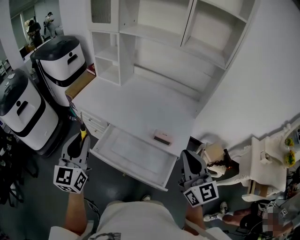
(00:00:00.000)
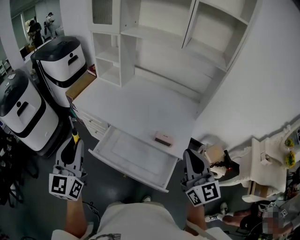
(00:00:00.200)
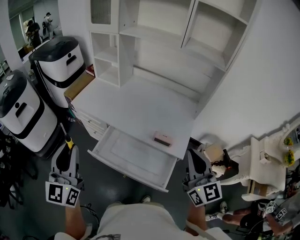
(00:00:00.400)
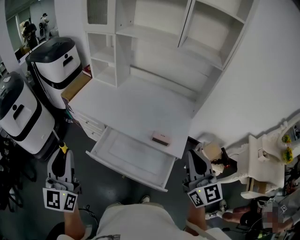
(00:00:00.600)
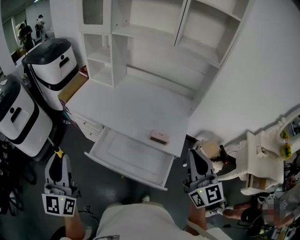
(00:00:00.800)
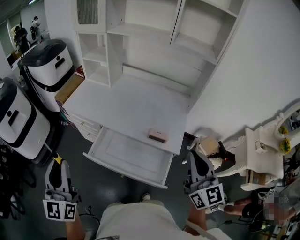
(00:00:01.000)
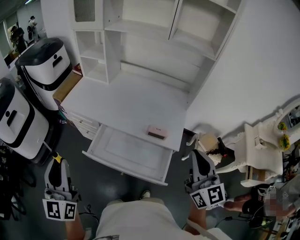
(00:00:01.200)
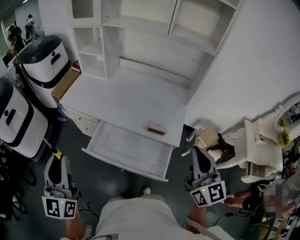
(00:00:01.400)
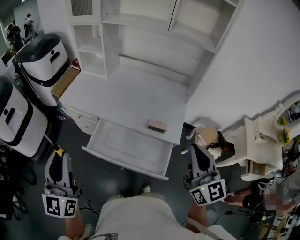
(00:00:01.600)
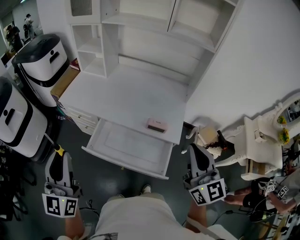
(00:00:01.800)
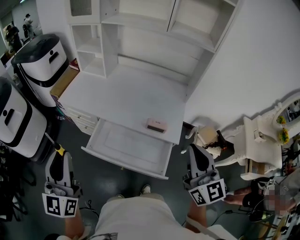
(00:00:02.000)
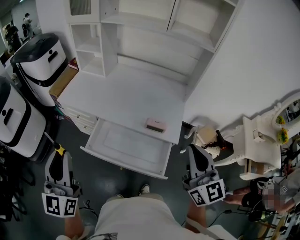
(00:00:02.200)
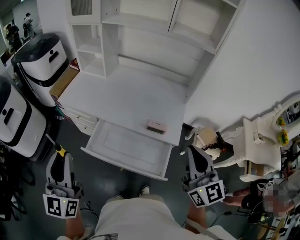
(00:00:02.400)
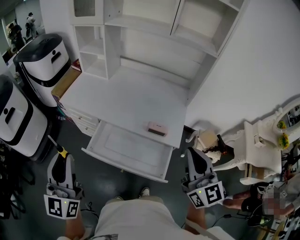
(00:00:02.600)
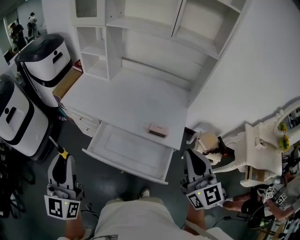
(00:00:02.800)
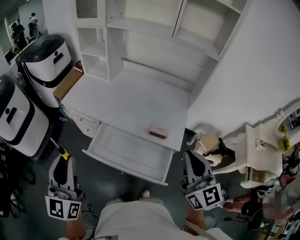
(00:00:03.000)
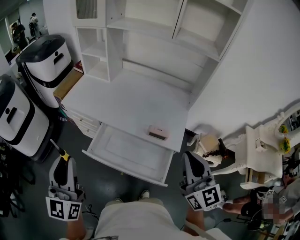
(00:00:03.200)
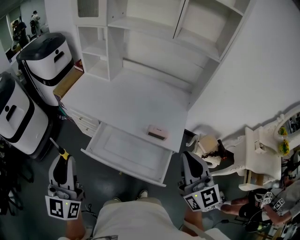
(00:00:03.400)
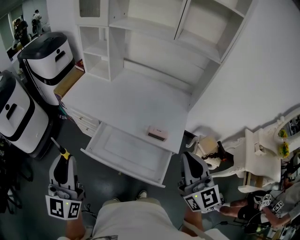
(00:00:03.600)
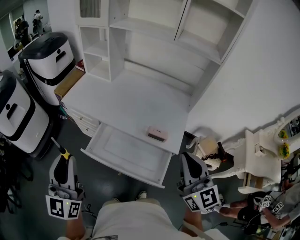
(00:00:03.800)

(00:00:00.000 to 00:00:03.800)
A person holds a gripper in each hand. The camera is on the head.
00:00:00.000 - 00:00:01.200: The left gripper heads backward and to the left, covering about 10 cm.
00:00:01.200 - 00:00:03.800: The grippers make only small movements.

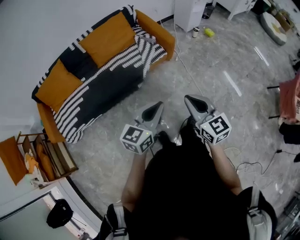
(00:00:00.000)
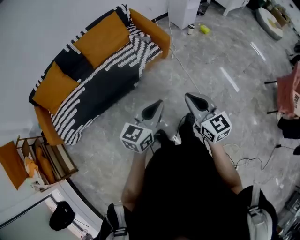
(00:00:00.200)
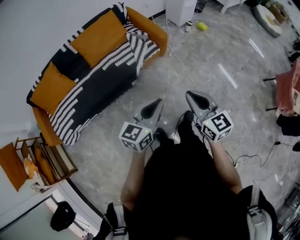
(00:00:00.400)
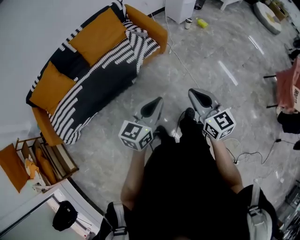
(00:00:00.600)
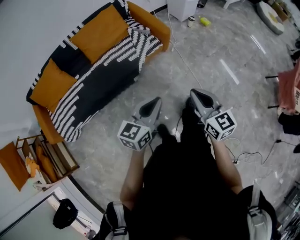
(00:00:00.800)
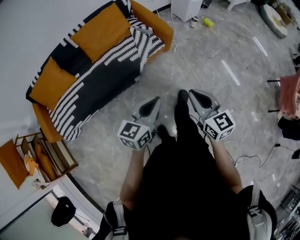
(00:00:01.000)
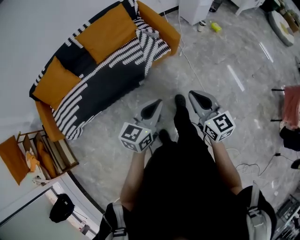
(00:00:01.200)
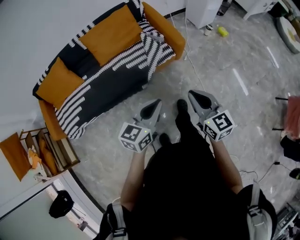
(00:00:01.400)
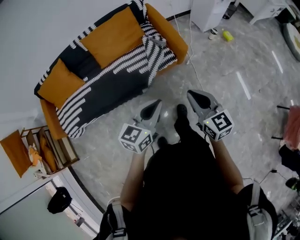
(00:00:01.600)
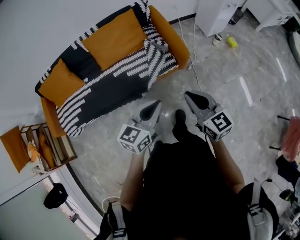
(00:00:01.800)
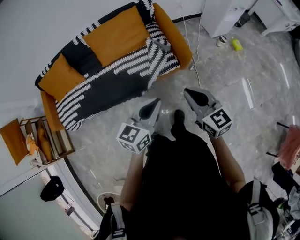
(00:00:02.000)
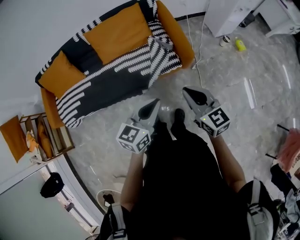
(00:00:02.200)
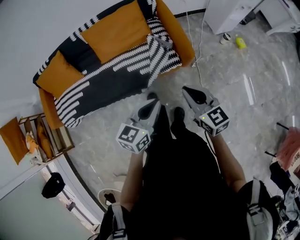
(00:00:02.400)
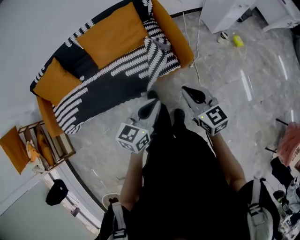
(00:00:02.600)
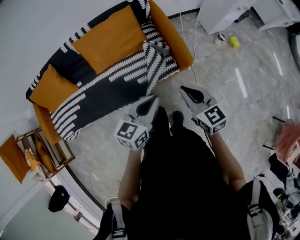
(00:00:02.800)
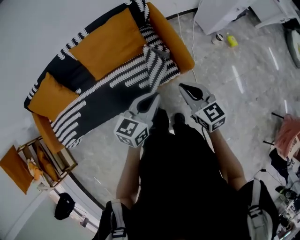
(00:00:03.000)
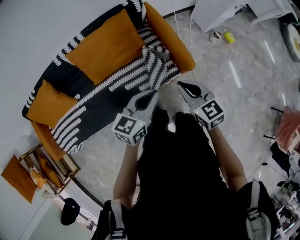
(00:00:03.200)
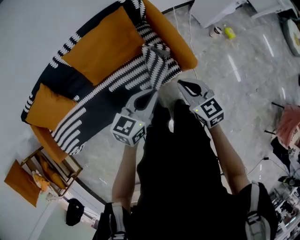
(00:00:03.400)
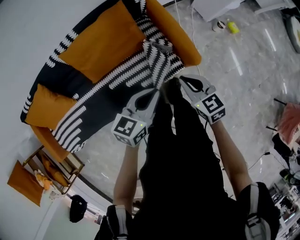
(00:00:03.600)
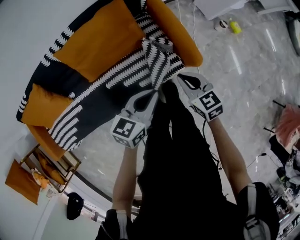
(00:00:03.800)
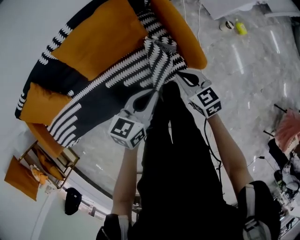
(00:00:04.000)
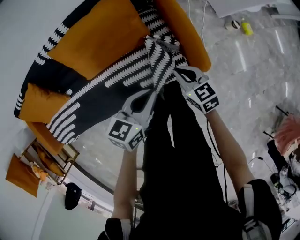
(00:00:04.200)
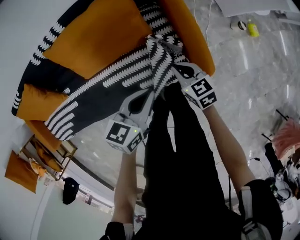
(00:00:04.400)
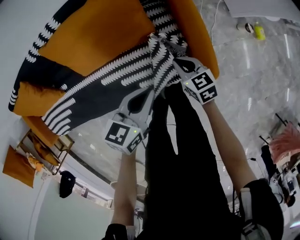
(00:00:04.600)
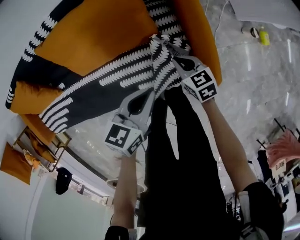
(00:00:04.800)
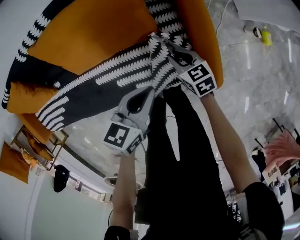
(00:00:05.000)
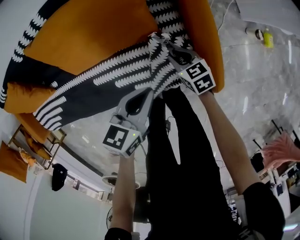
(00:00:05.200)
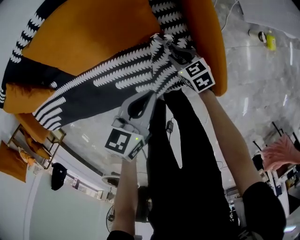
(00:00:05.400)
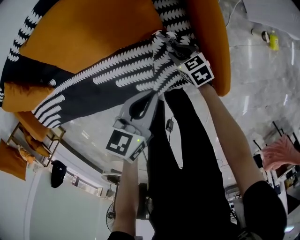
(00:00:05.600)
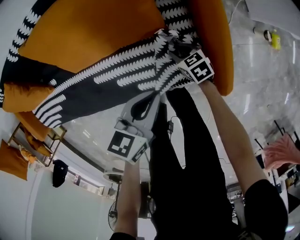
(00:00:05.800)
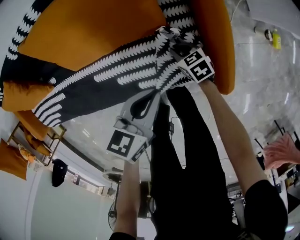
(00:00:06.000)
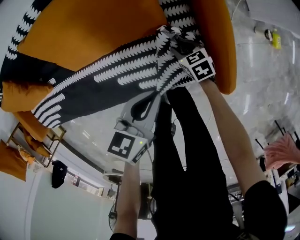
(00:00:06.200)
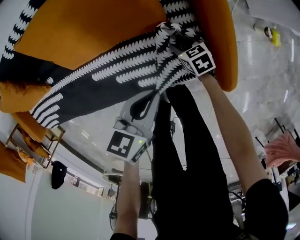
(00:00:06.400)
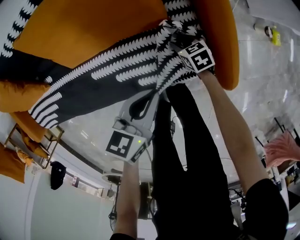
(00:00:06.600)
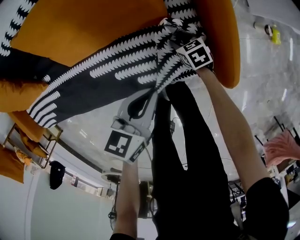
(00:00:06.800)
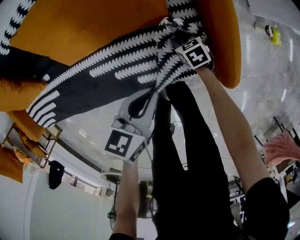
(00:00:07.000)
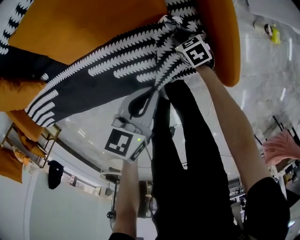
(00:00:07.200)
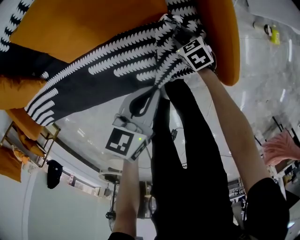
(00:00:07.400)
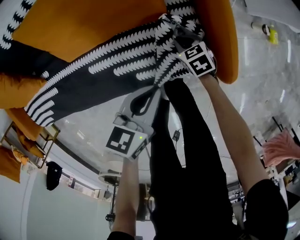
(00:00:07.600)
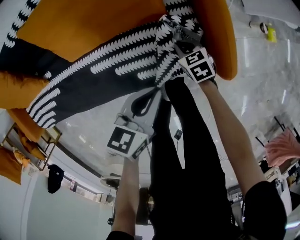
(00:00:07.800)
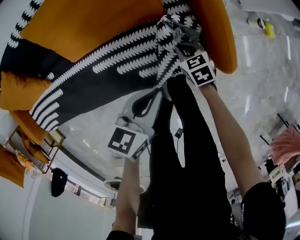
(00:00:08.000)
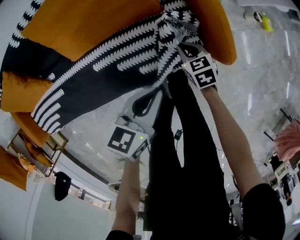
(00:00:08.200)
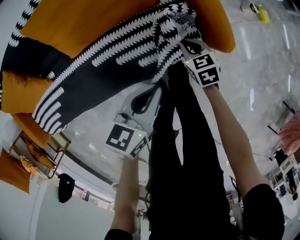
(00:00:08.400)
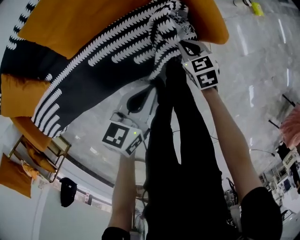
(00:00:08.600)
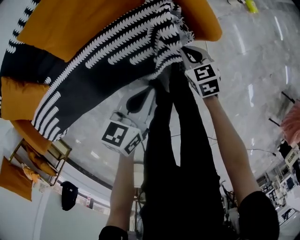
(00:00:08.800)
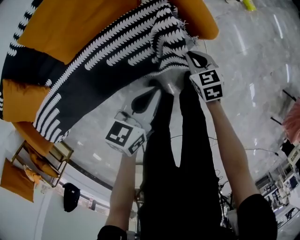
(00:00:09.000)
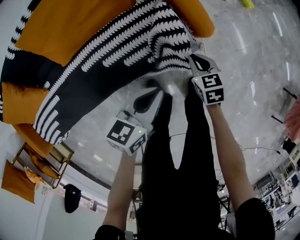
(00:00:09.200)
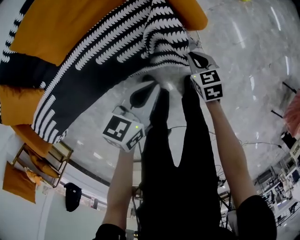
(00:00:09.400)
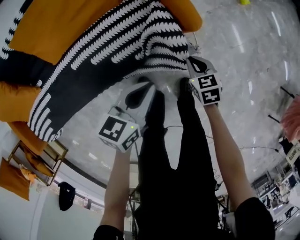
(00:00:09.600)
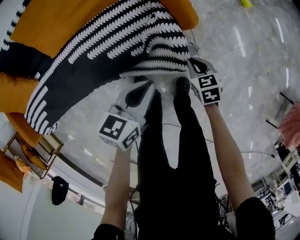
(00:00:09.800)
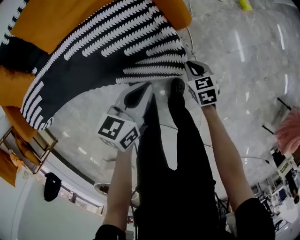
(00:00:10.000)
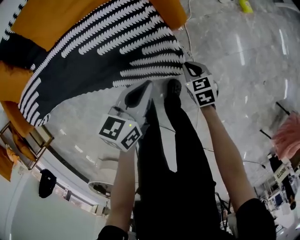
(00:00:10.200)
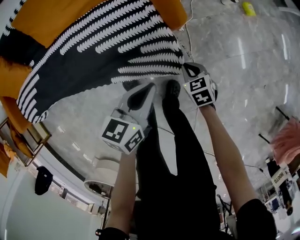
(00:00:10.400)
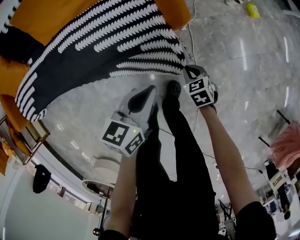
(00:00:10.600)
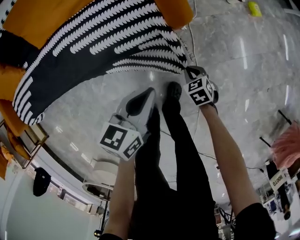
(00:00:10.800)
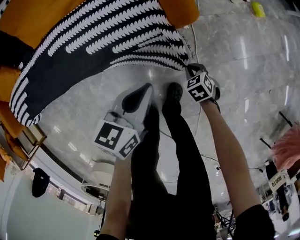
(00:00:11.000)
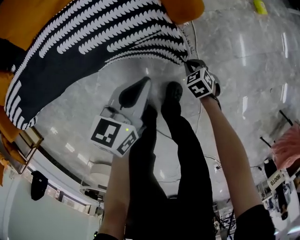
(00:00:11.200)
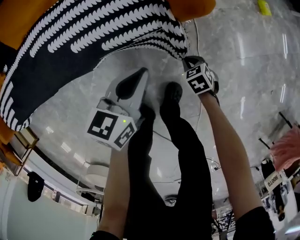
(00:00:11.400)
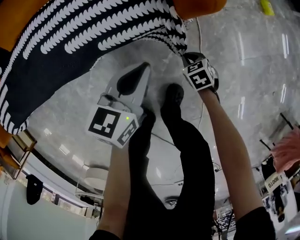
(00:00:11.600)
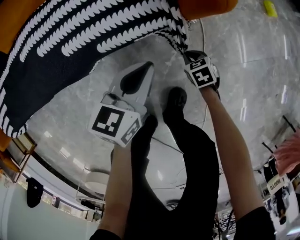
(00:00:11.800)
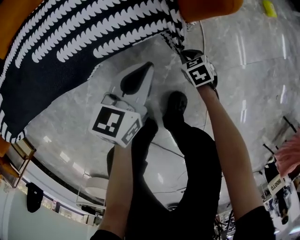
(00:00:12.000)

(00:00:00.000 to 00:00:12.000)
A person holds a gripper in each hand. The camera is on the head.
00:00:00.000 - 00:00:01.600: The two grippers go about 25 cm forward.
00:00:01.600 - 00:00:03.000: Both grippers travel together forward, some 30 cm.
00:00:03.000 - 00:00:04.400: The left gripper moves forward and downward, some 25 cm. The right gripper moves downward and forward, about 35 cm, and turns by some 20 degrees.
00:00:04.400 - 00:00:06.000: The left gripper moves downward and forward, about 15 cm. Meanwhile the right gripper shifts some 25 cm downward, and swivels about 20 degrees.
00:00:06.000 - 00:00:07.600: The left gripper travels backward by about 5 cm. The right gripper opens, then closes again.
00:00:07.600 - 00:00:09.000: The left gripper moves roughly 20 cm, while the right gripper ends up roughly 25 cm from where it was, and swivels some 30 degrees.
00:00:09.000 - 00:00:10.400: The left gripper shifts about 10 cm to the right. The right gripper moves left and right over approximately 10 cm, changing direction 2 times.
00:00:10.400 - 00:00:12.000: The two grippers go about 30 cm downward.

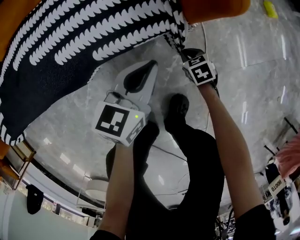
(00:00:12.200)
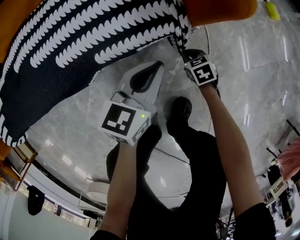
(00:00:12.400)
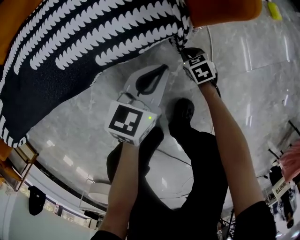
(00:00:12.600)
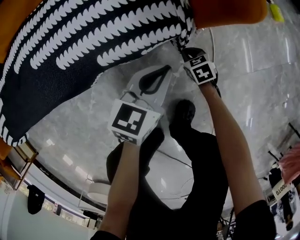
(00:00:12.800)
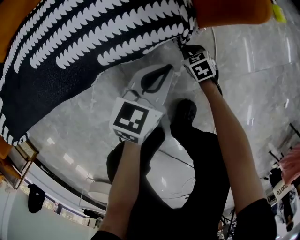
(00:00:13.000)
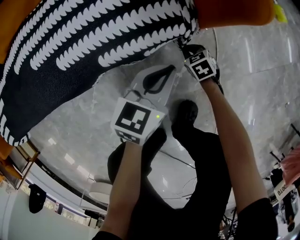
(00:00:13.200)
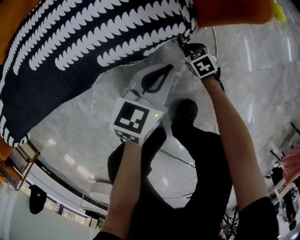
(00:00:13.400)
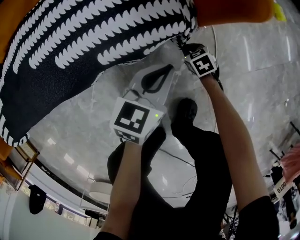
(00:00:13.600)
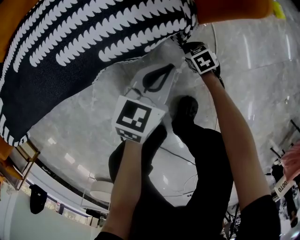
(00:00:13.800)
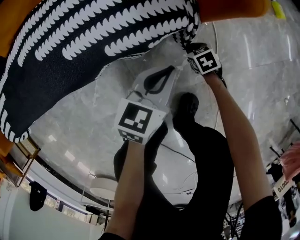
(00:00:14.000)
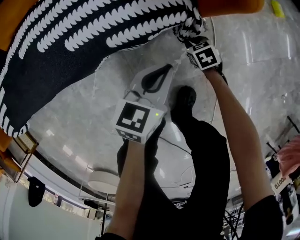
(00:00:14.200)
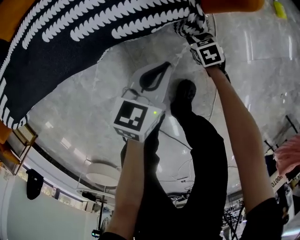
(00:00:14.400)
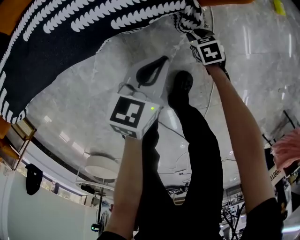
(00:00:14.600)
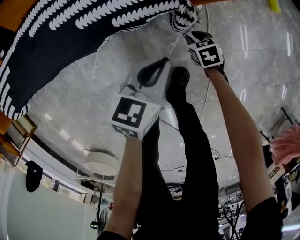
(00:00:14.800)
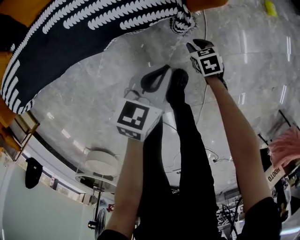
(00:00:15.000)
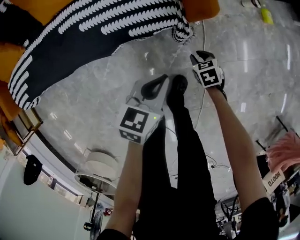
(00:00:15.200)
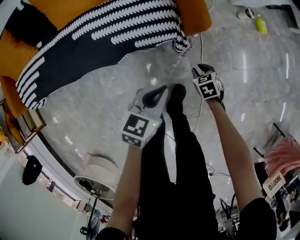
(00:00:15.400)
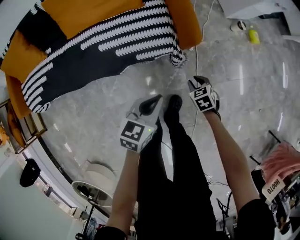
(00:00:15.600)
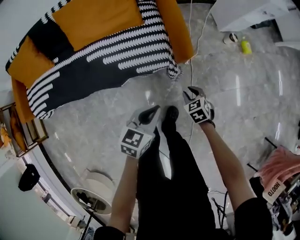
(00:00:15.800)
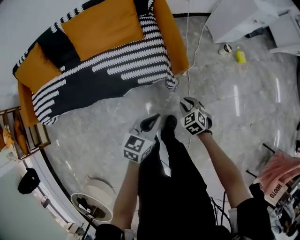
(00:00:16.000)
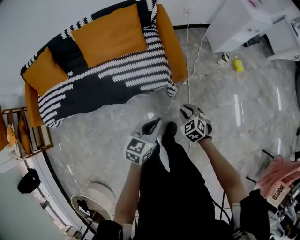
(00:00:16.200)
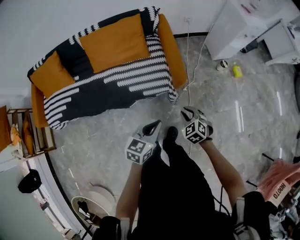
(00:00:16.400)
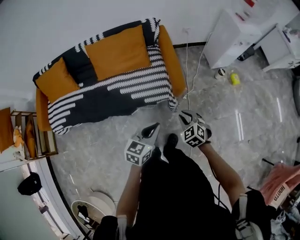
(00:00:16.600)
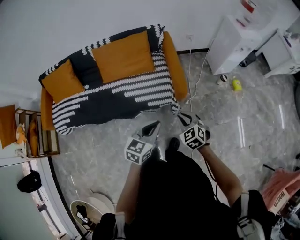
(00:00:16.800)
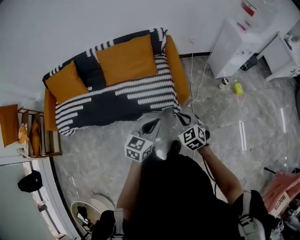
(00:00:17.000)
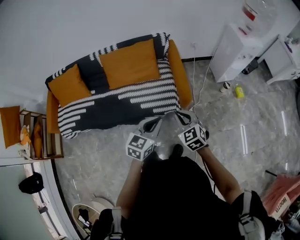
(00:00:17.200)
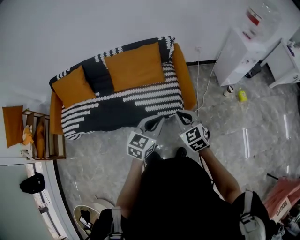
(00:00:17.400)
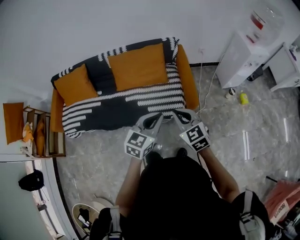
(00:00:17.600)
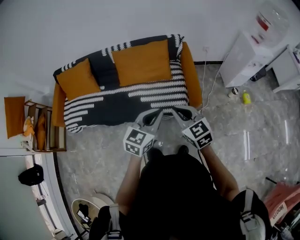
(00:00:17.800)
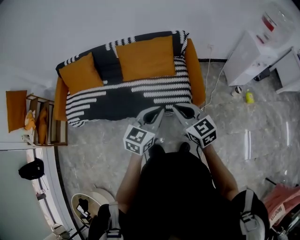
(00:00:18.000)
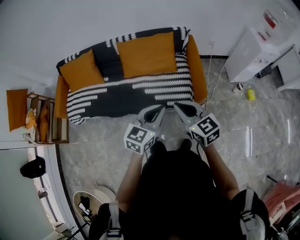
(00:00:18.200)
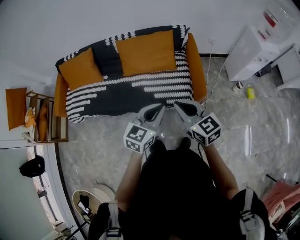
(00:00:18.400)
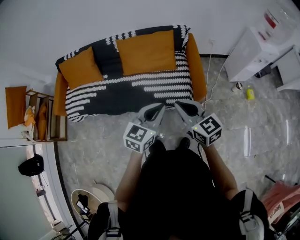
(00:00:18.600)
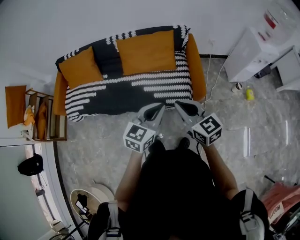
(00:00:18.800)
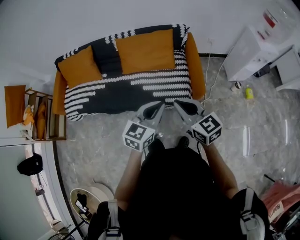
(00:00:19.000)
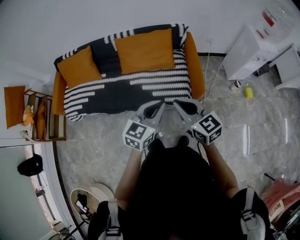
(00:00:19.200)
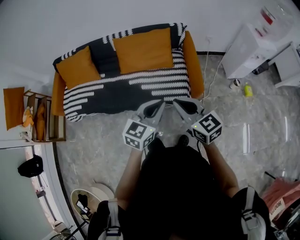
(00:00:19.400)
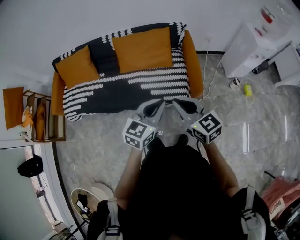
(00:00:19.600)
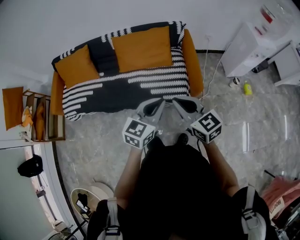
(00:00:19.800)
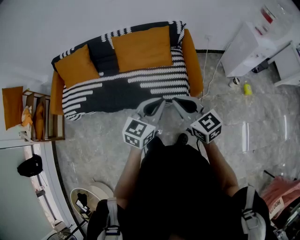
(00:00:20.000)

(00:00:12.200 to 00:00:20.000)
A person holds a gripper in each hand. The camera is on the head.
00:00:12.200 - 00:00:13.800: The left gripper ends up approximately 5 cm from where it was; the right gripper travels downward by some 5 cm.
00:00:13.800 - 00:00:15.400: Both grippers move upward, roughly 35 cm. The right gripper opens up.
00:00:15.400 - 00:00:16.800: Both grippers travel together upward, some 35 cm. The right gripper swivels about 40 degrees.
00:00:16.800 - 00:00:18.400: The left gripper goes roughly 15 cm to the left and upward; the right gripper travels upward and to the left by roughly 25 cm, and swivels approximately 40 degrees.
00:00:18.400 - 00:00:20.000: The grippers make only small movements.
